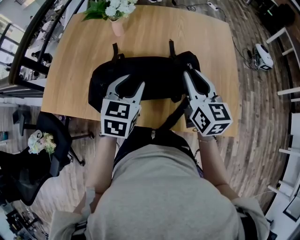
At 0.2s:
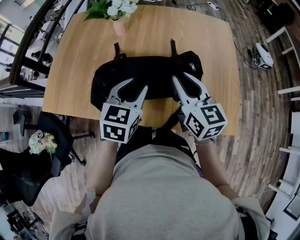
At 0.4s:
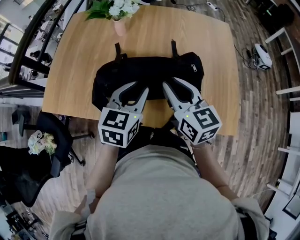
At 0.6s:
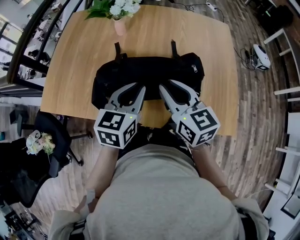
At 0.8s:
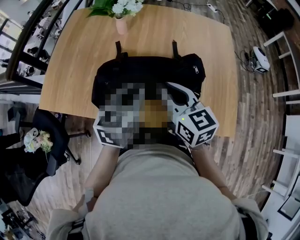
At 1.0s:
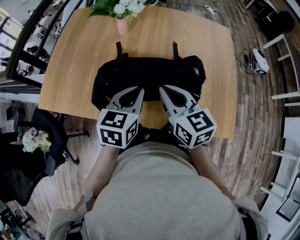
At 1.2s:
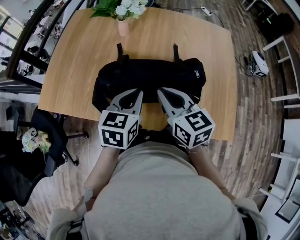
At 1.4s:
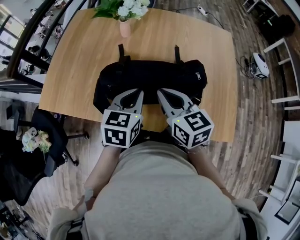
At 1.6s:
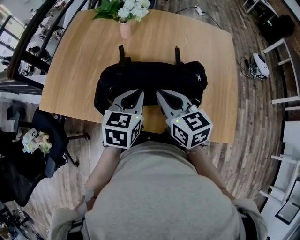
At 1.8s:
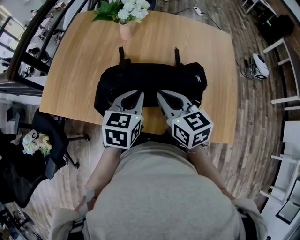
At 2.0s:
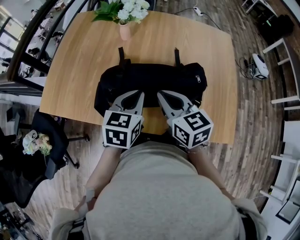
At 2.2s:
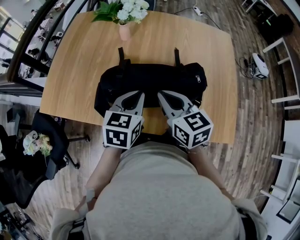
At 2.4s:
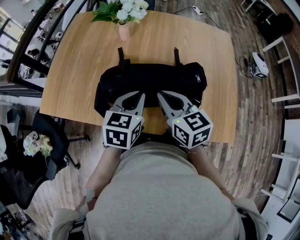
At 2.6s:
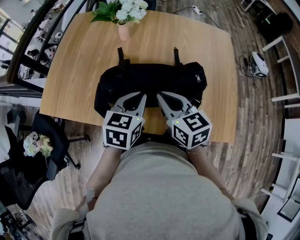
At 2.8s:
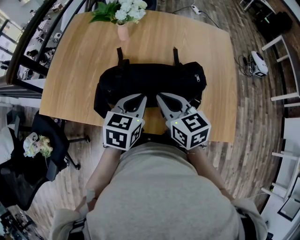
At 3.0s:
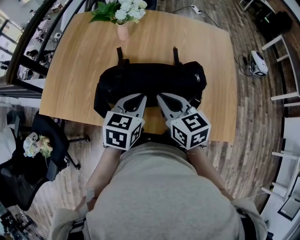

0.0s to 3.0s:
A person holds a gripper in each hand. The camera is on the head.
0.0s to 1.6s: The left gripper closes; the right gripper moves to the left, some 15 cm, and rotates approximately 20 degrees.
1.6s to 3.0s: The grippers stay close to where they were, moving slightly.

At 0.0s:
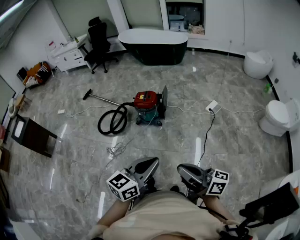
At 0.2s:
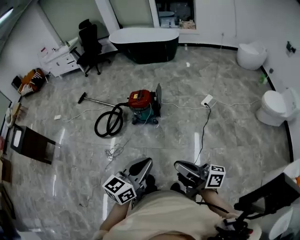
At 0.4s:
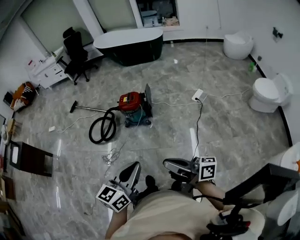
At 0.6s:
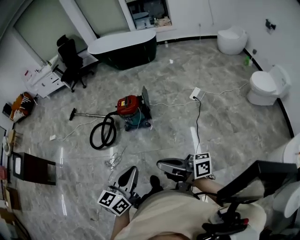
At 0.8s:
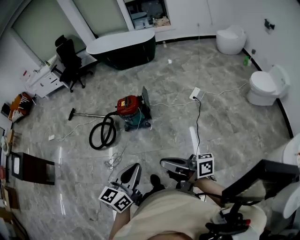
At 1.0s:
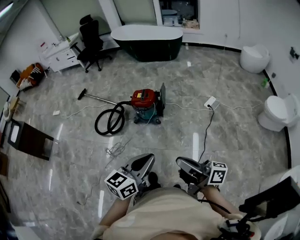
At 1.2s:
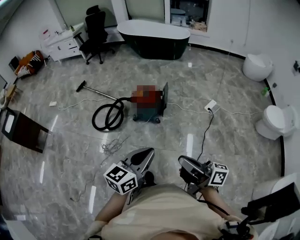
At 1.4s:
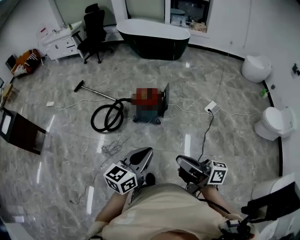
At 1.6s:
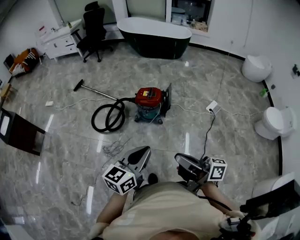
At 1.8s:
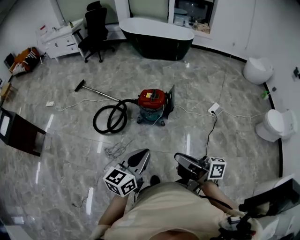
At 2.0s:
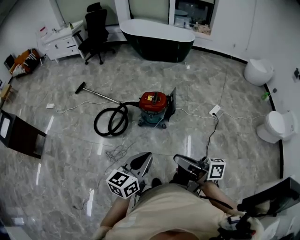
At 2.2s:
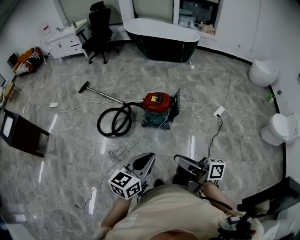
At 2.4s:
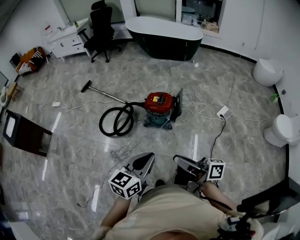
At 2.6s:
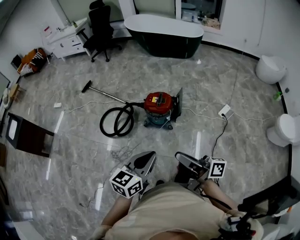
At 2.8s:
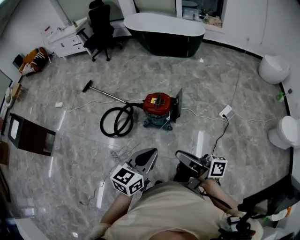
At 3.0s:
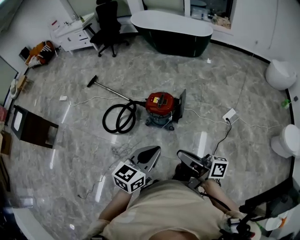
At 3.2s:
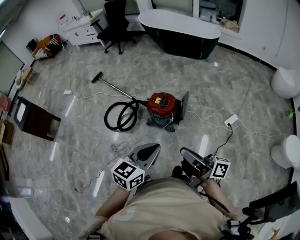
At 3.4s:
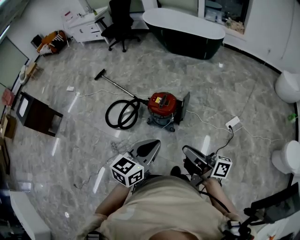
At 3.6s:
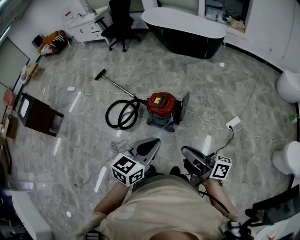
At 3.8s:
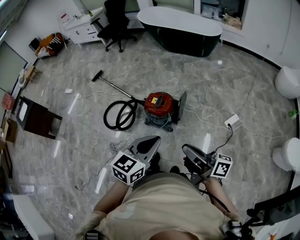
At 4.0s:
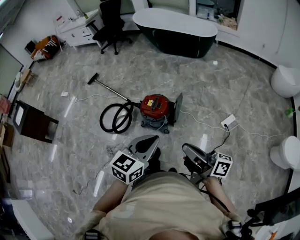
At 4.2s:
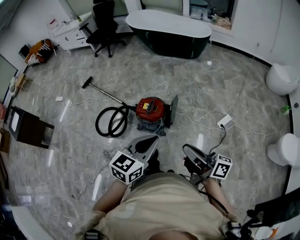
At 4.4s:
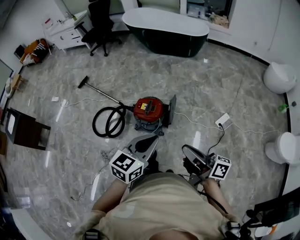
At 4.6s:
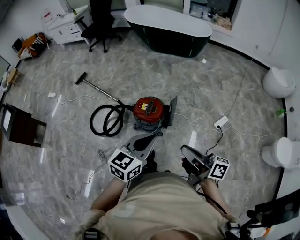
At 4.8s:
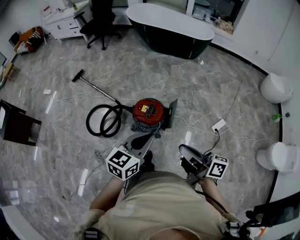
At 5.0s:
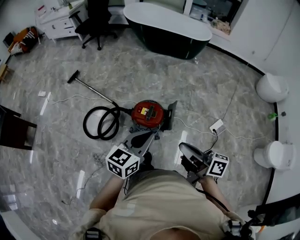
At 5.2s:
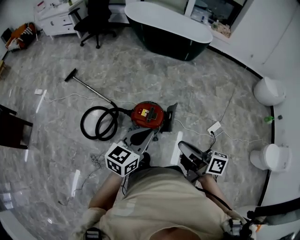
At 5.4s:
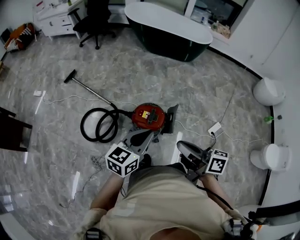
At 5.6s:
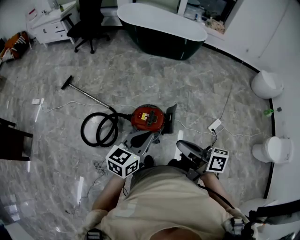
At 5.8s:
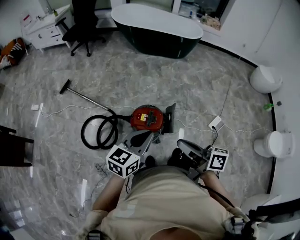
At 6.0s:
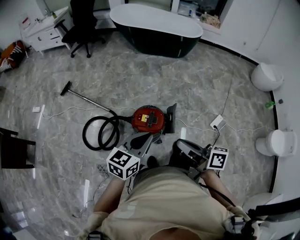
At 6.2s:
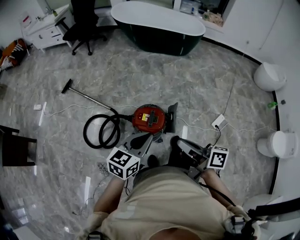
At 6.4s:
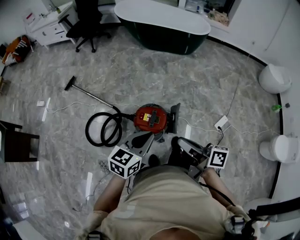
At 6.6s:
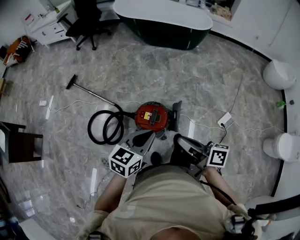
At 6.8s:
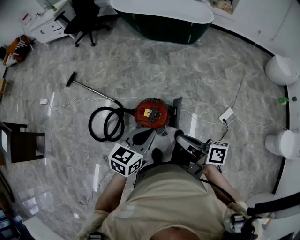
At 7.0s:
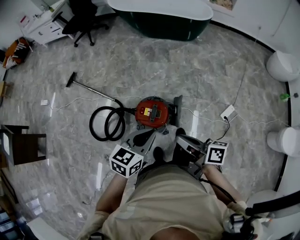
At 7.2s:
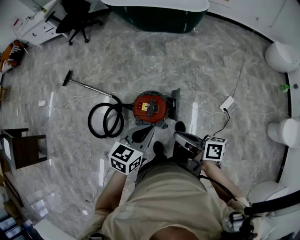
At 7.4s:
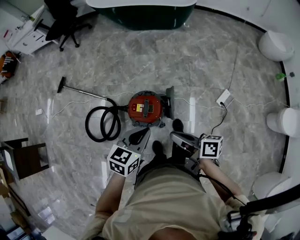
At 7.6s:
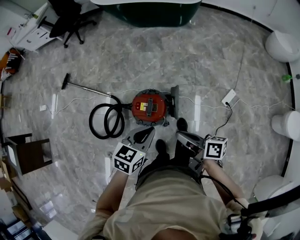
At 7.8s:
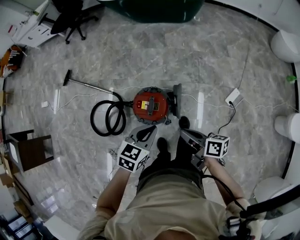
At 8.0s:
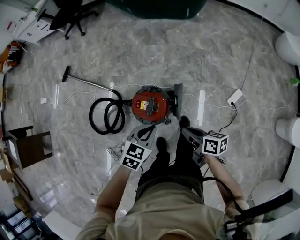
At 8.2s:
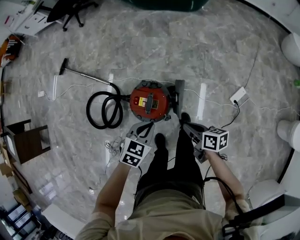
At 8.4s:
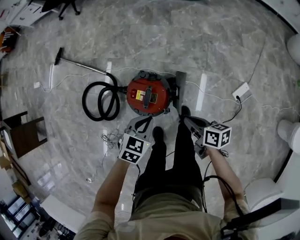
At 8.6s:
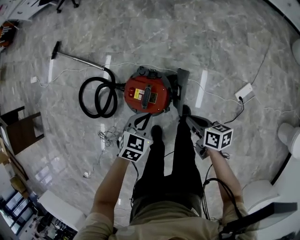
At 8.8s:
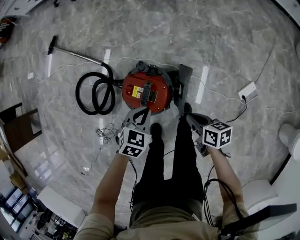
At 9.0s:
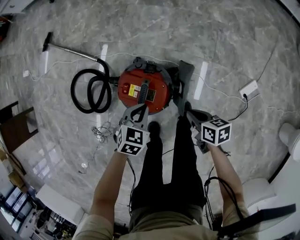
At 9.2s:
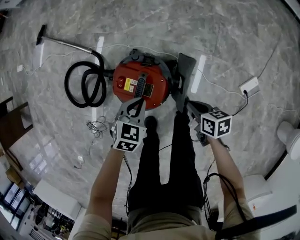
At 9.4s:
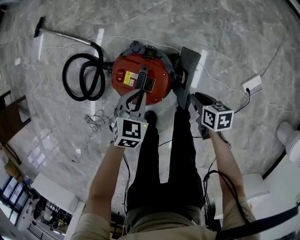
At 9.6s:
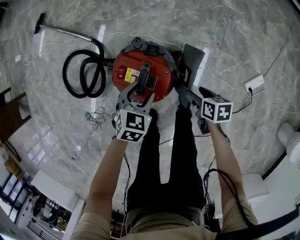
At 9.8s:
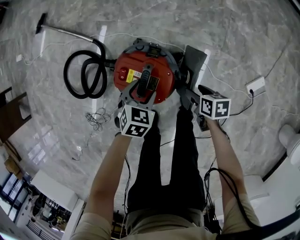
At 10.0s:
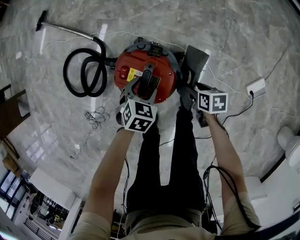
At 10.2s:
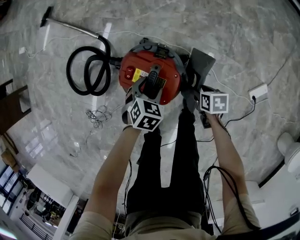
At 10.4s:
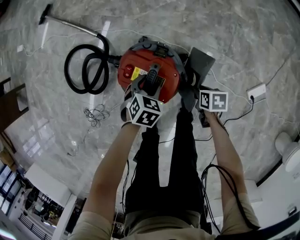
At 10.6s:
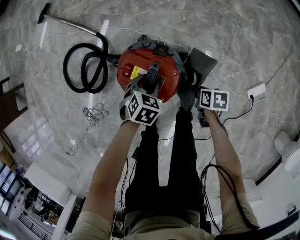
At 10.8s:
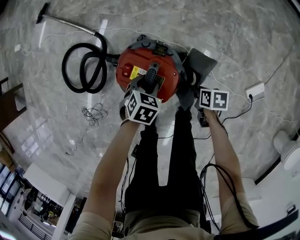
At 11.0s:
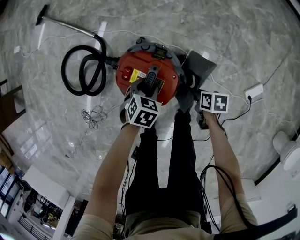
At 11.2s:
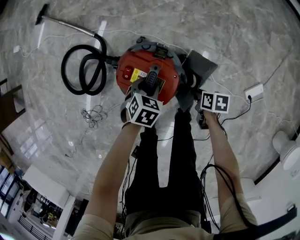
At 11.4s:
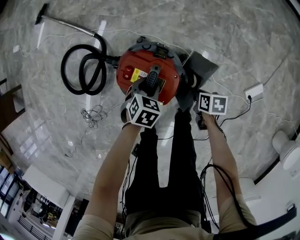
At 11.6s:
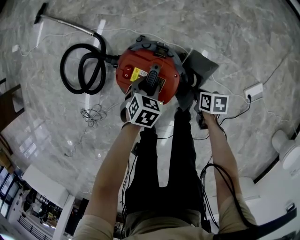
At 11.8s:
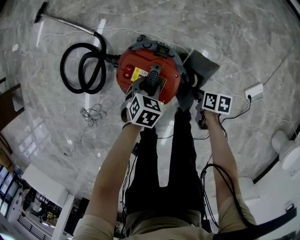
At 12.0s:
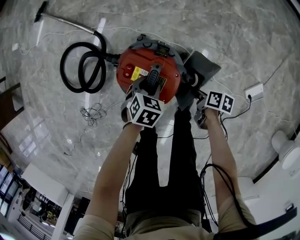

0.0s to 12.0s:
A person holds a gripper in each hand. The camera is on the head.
0.0s to 1.6s: The left gripper shifts by some 25 cm.
1.6s to 3.0s: The left gripper shifts by roughly 20 cm.
3.0s to 4.4s: The left gripper shifts by approximately 15 cm.
4.4s to 6.0s: The left gripper shifts by approximately 25 cm.
6.0s to 7.6s: The left gripper moves approximately 15 cm.
7.6s to 9.0s: The left gripper shifts approximately 35 cm downward, and swivels about 20 degrees.
9.0s to 10.4s: The left gripper moves downward, roughly 15 cm, and opens.

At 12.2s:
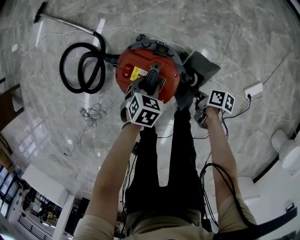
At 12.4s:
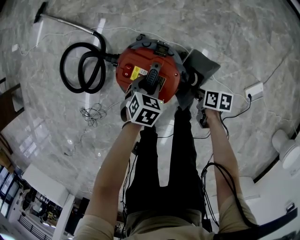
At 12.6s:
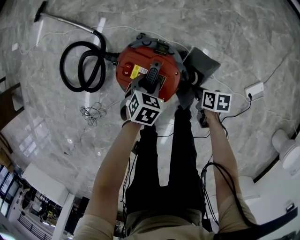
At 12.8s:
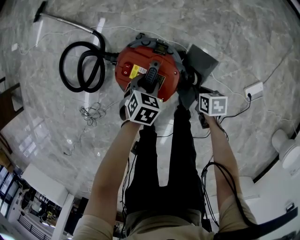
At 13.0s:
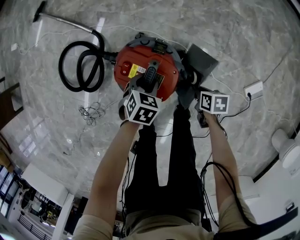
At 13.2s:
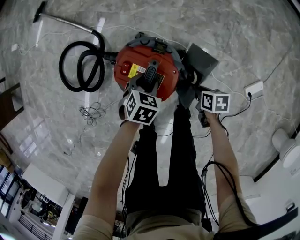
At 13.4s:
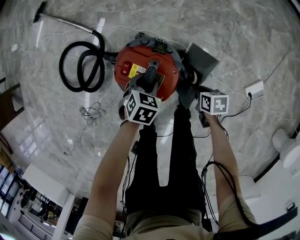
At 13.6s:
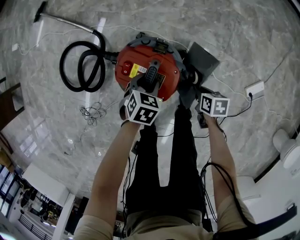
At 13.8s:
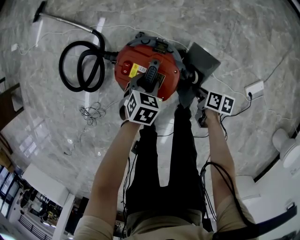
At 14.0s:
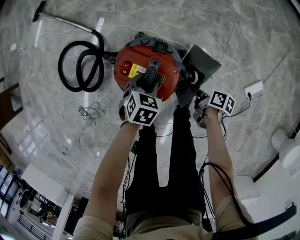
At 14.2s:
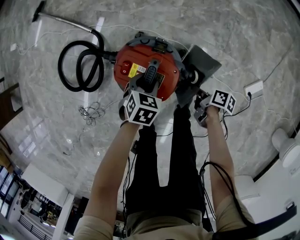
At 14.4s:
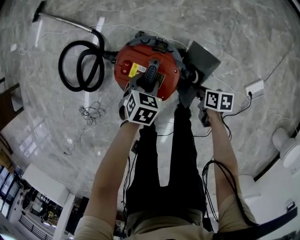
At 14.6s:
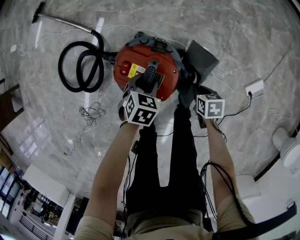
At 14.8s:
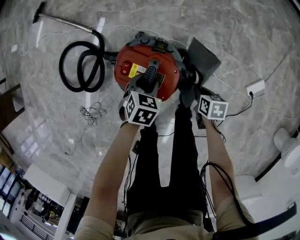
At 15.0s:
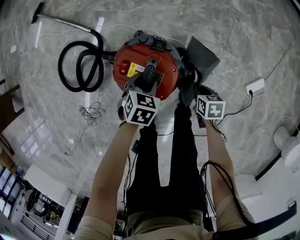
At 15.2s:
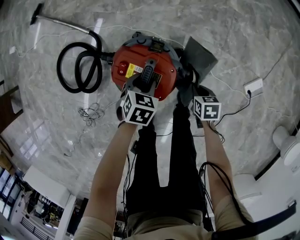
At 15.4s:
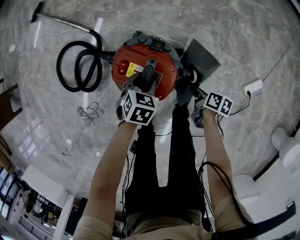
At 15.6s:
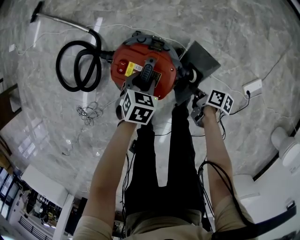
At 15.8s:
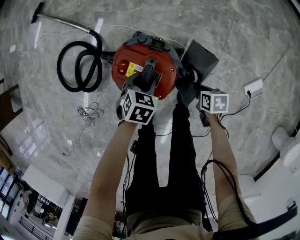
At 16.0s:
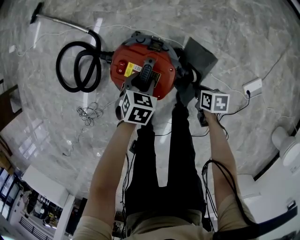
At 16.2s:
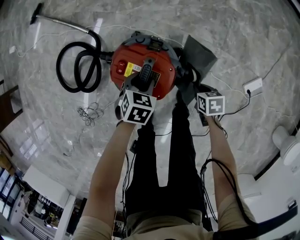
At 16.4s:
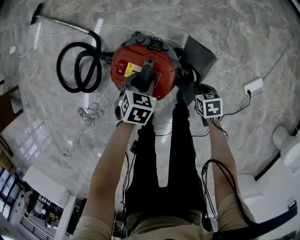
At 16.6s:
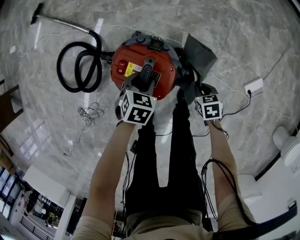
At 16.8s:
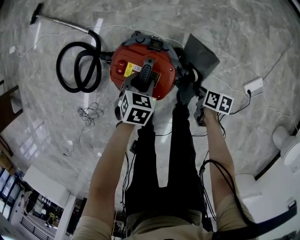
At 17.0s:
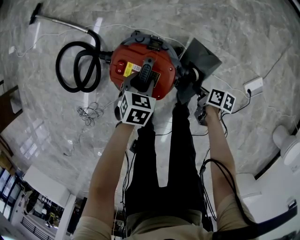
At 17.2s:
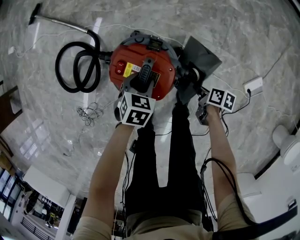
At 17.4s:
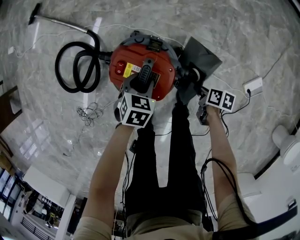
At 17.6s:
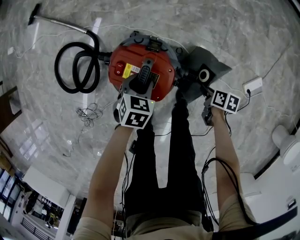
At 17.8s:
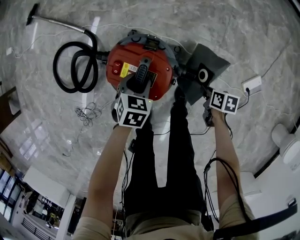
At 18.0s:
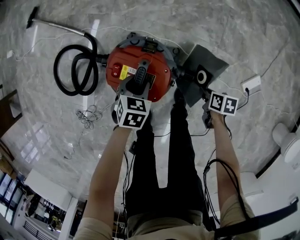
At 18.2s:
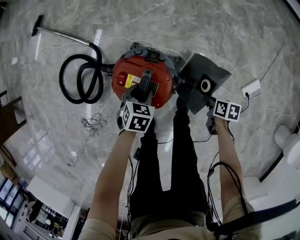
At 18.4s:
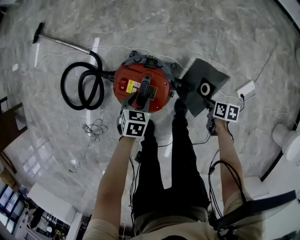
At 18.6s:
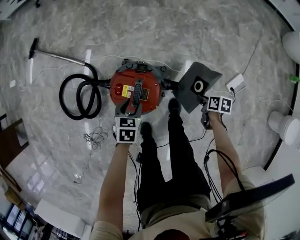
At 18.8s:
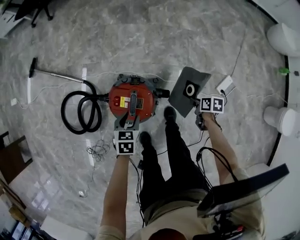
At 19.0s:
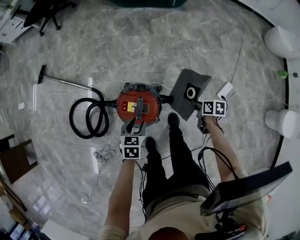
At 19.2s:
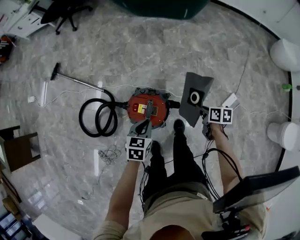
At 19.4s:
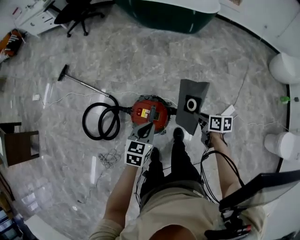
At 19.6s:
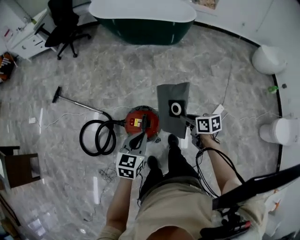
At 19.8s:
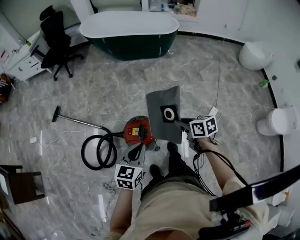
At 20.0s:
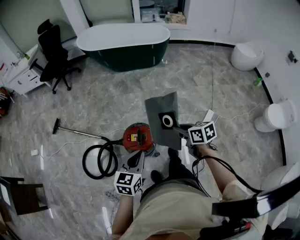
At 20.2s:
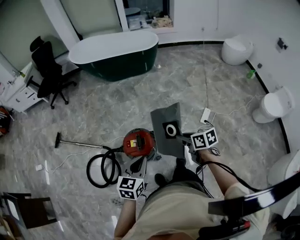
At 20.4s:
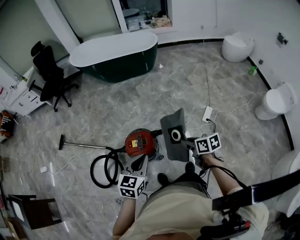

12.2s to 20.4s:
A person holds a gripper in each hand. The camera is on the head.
17.2s to 18.8s: The left gripper goes some 15 cm upward.
18.8s to 20.4s: The left gripper is displaced upward by roughly 40 cm, points its fingers approximately 30 degrees further upward, and closes its fingers.

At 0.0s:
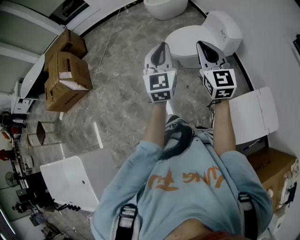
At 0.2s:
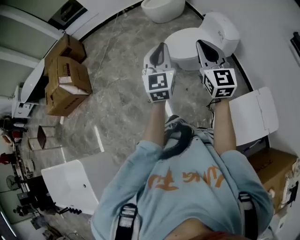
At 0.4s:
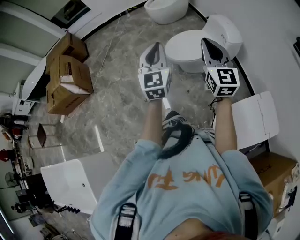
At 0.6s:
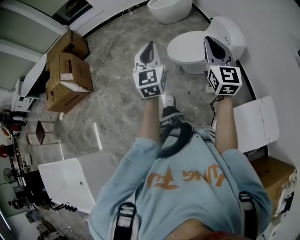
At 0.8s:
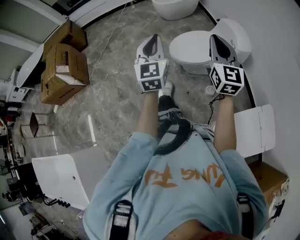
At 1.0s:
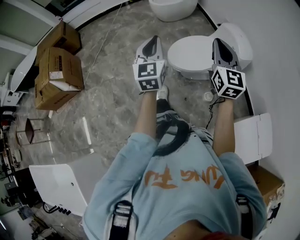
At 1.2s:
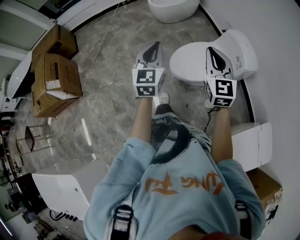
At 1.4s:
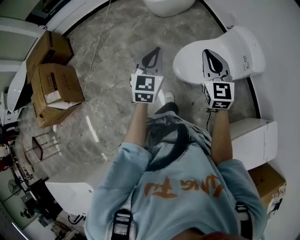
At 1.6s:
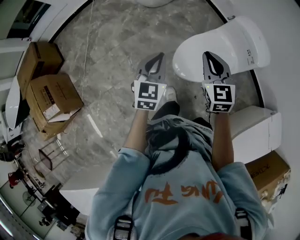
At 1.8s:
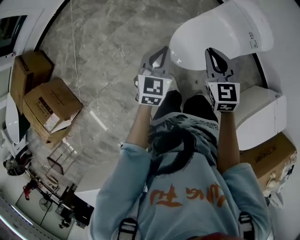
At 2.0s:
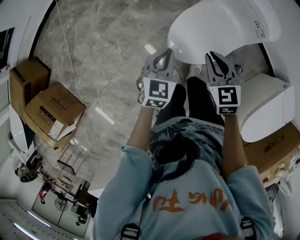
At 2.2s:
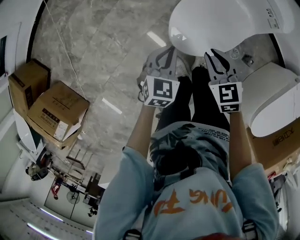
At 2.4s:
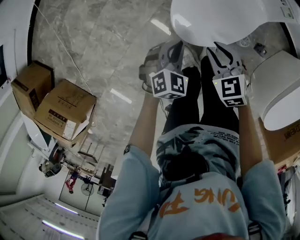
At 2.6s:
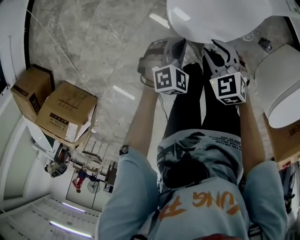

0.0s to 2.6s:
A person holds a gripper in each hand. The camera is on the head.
0.0s to 1.2s: The two grippers go about 30 cm forward.
1.2s to 2.6s: Both grippers move downward, about 50 cm. The left gripper tilts its fingers roughly 50 degrees downward. The right gripper tips its fingers downward by some 50 degrees, and opens up.
